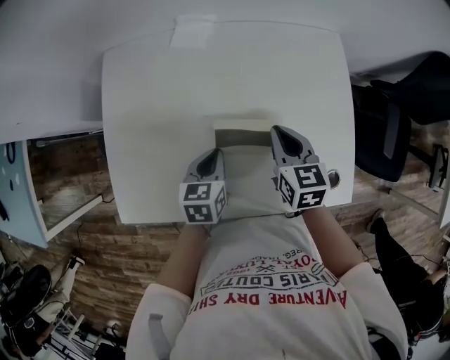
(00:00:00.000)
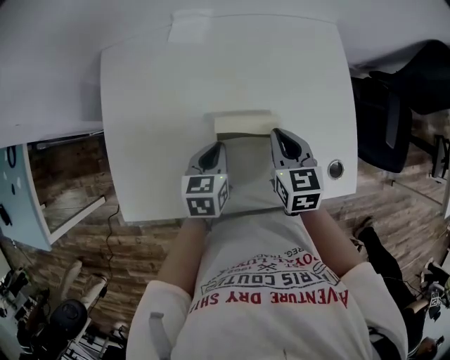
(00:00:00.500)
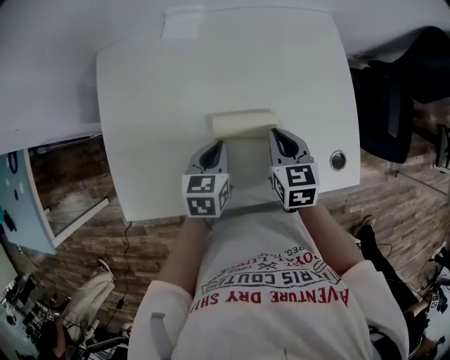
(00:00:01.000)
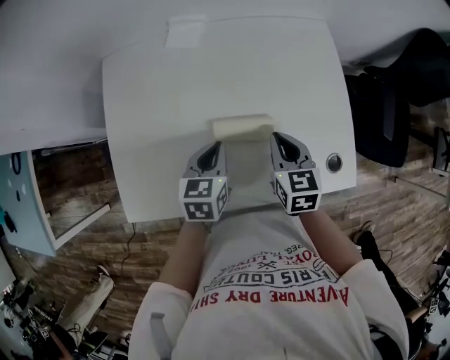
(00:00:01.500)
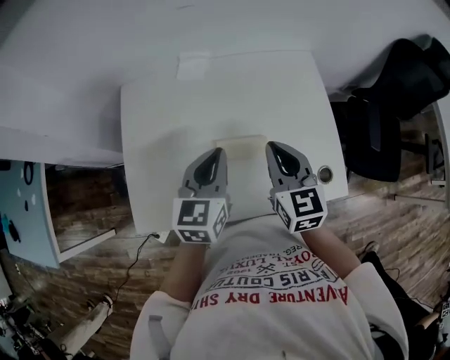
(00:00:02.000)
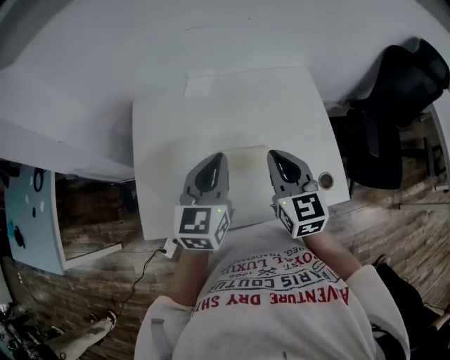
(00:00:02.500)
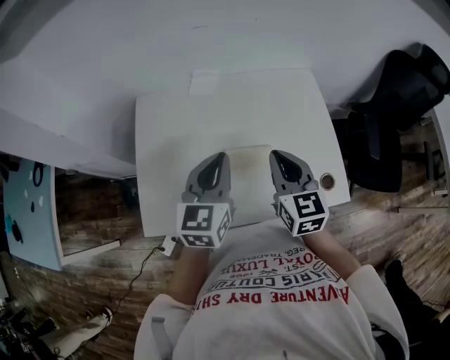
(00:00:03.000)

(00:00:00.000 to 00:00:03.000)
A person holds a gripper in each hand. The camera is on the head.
00:00:00.000 - 00:00:01.500: The right gripper moves about 5 cm.
00:00:01.500 - 00:00:03.000: The two grippers go approximately 15 cm upward. The left gripper turns by some 30 degrees.

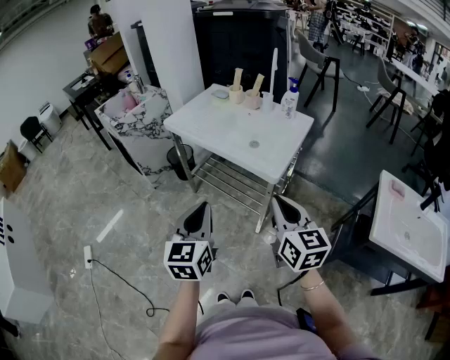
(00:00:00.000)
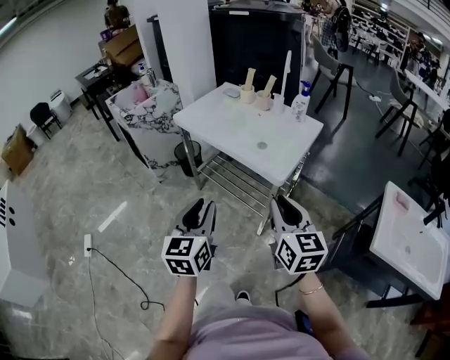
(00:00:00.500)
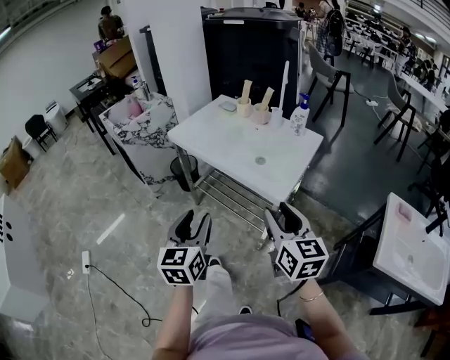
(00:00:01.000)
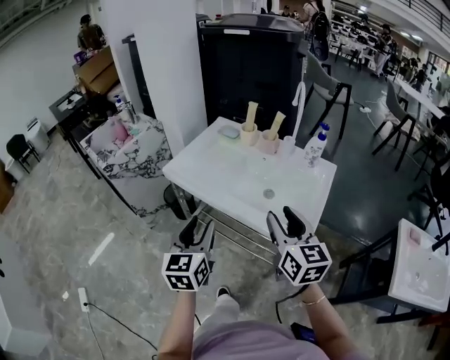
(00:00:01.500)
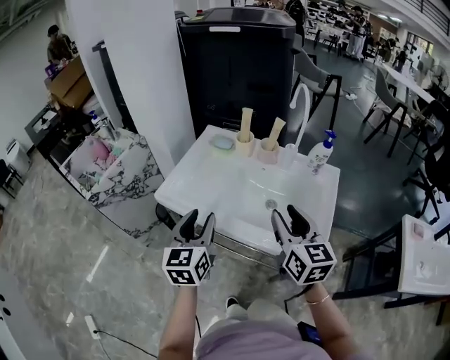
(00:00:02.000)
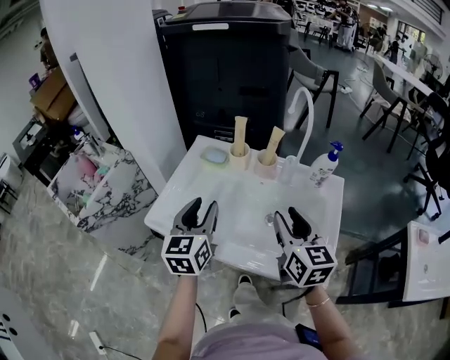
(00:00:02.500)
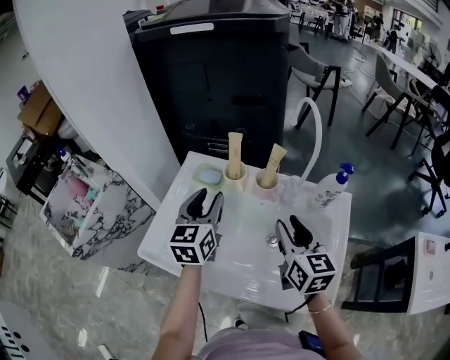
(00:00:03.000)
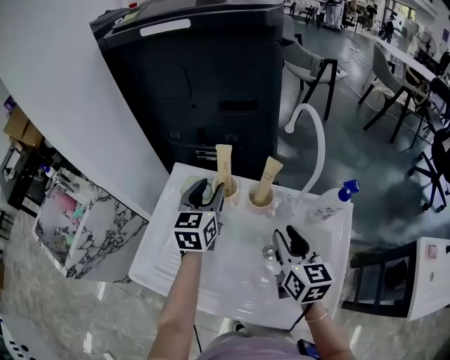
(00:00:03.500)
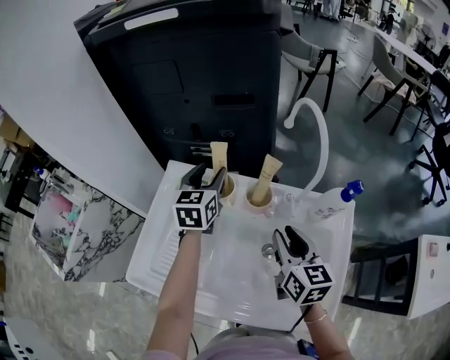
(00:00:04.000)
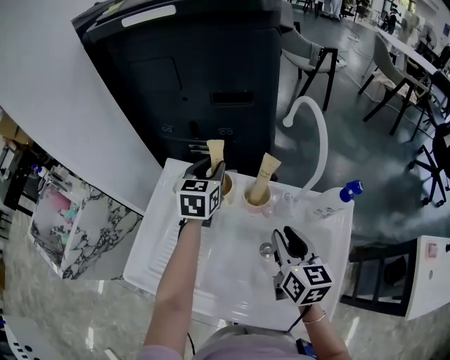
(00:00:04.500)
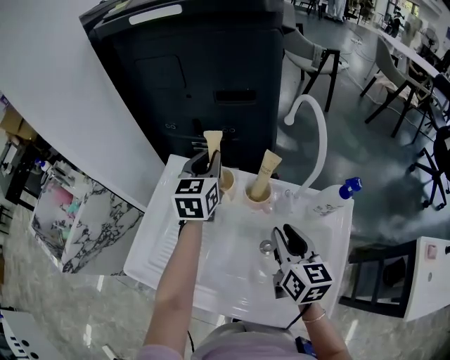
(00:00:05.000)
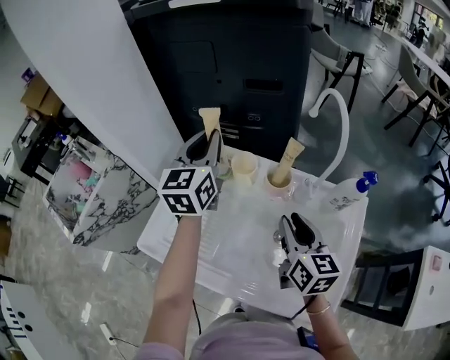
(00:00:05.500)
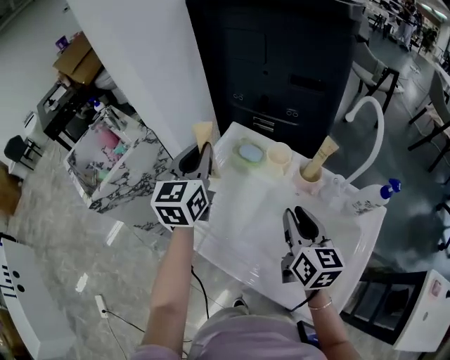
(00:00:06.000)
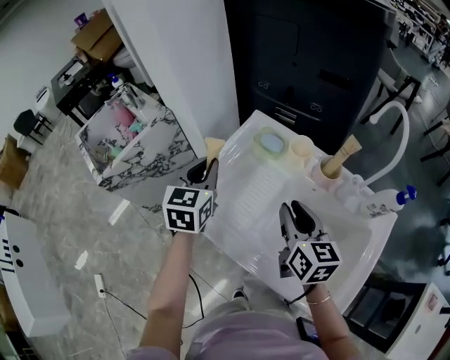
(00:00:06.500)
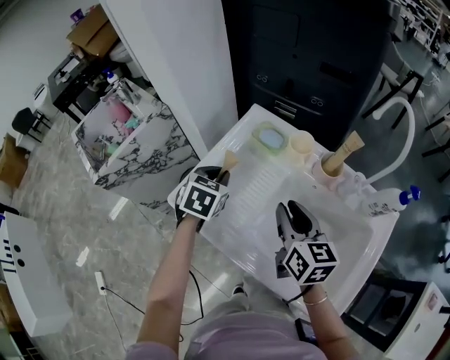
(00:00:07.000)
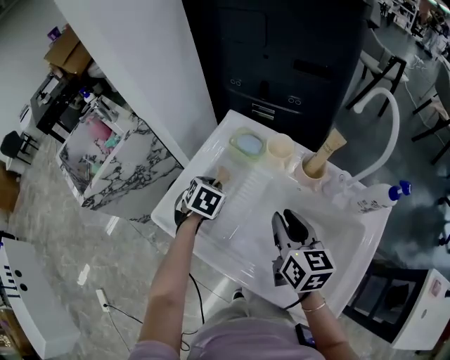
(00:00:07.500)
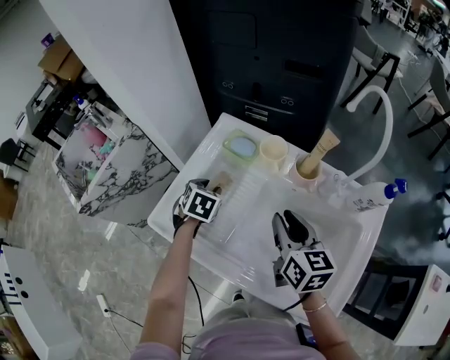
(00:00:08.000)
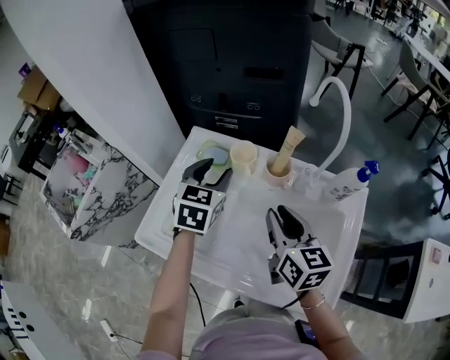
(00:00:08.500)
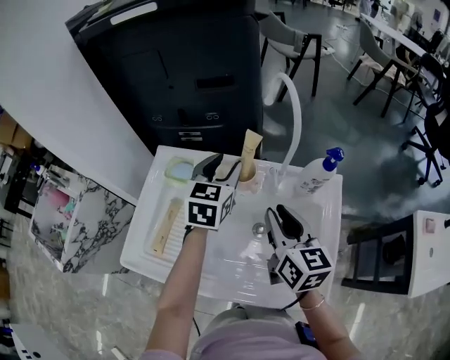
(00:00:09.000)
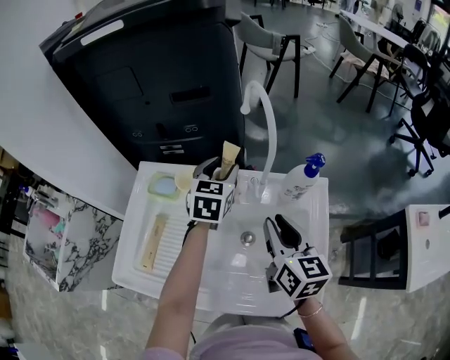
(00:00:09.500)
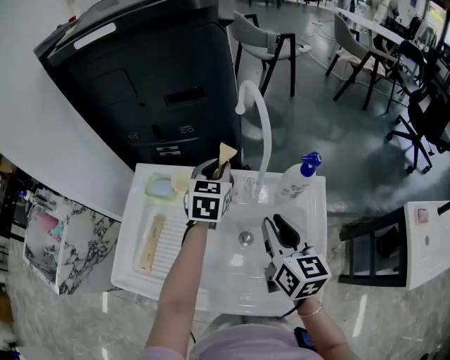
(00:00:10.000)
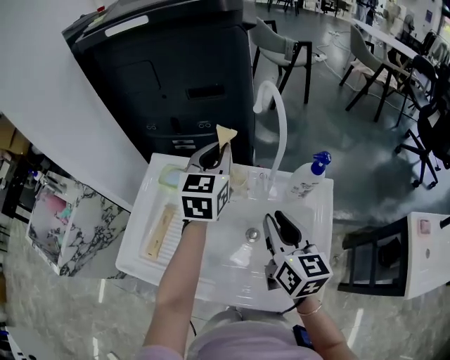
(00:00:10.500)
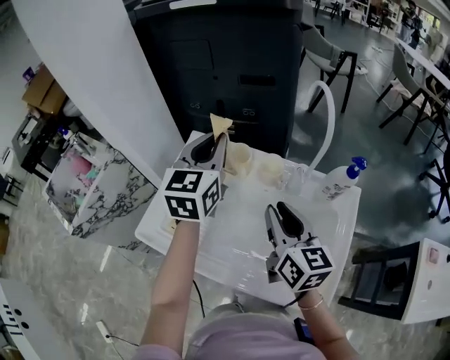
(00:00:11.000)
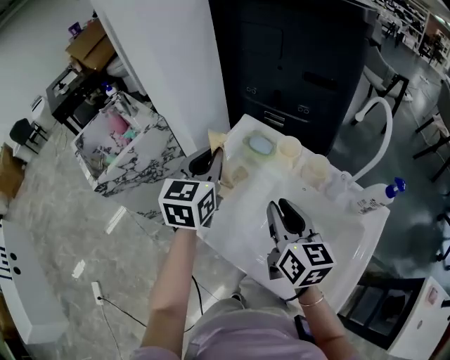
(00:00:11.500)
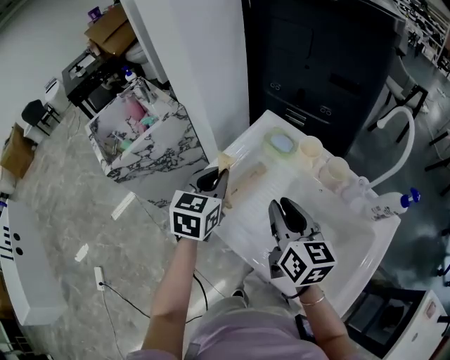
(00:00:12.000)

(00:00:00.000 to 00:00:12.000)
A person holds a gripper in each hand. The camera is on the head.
00:00:00.000 - 00:00:02.000: Both grippers travel together forward, approximately 40 cm. The right gripper opens its fingers. The left gripper opens up.
00:00:02.000 - 00:00:04.000: The right gripper shifts approximately 30 cm forward and downward; the left gripper travels forward by roughly 50 cm.
00:00:04.000 - 00:00:06.000: The right gripper shifts roughly 10 cm to the left; the left gripper goes roughly 25 cm to the left, backward and upward, changes its angle by about 20 degrees, and closes.
00:00:06.000 - 00:00:08.000: The left gripper travels downward by approximately 25 cm, tilts its fingers approximately 50 degrees downward, and opens its fingers.
00:00:08.000 - 00:00:10.000: The left gripper changes place by some 35 cm, and angles its fingers upward, by approximately 30 degrees. Meanwhile the right gripper shifts by approximately 15 cm, and changes its angle by some 20 degrees.
00:00:10.000 - 00:00:12.000: The left gripper travels upward and back again, some 15 cm each way, and rotates some 30 degrees. Meanwhile the right gripper shifts by about 25 cm, and changes its angle by roughly 30 degrees.

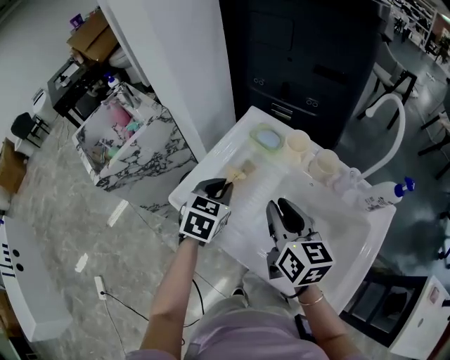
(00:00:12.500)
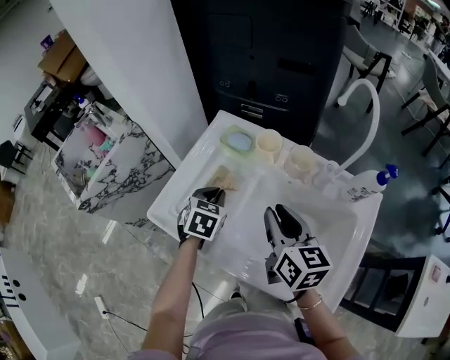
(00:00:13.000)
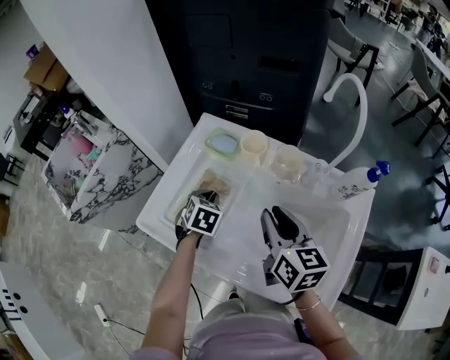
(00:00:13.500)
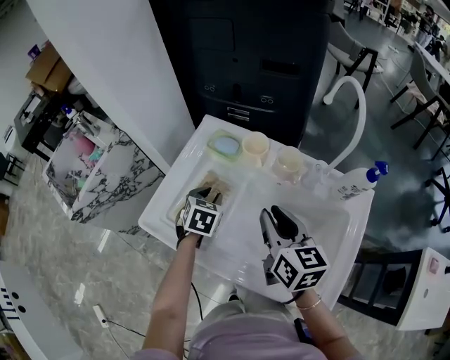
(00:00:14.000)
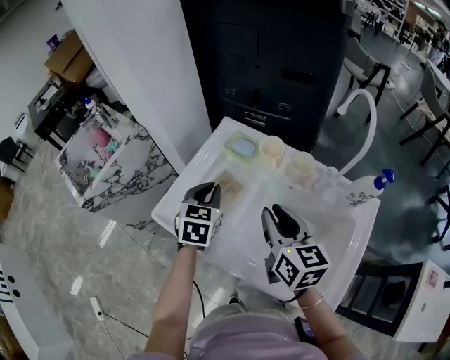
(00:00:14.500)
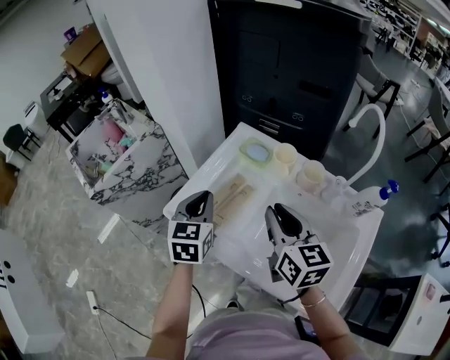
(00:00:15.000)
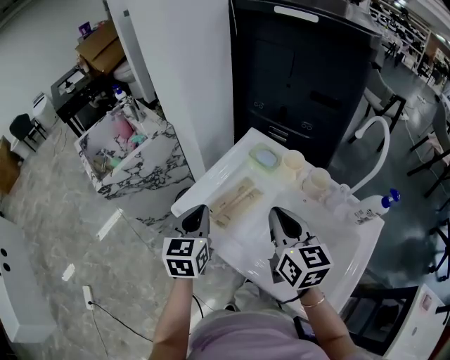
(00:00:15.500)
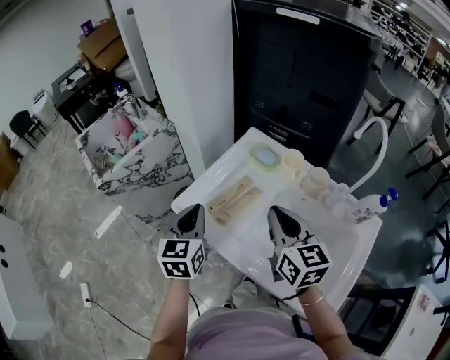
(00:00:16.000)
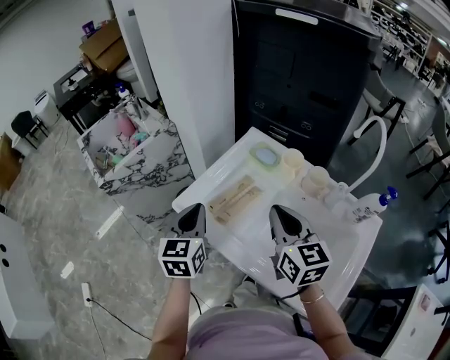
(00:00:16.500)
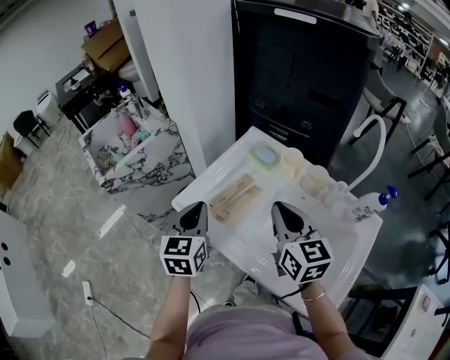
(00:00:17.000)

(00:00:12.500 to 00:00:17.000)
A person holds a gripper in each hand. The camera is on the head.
00:00:12.500 - 00:00:14.500: The left gripper goes downward and returns, about 10 cm each way, and opens, then closes once more.
00:00:14.500 - 00:00:17.000: The right gripper ends up roughly 5 cm from where it was, and closes. The left gripper travels to the left, backward and upward by about 15 cm, and swivels some 20 degrees.

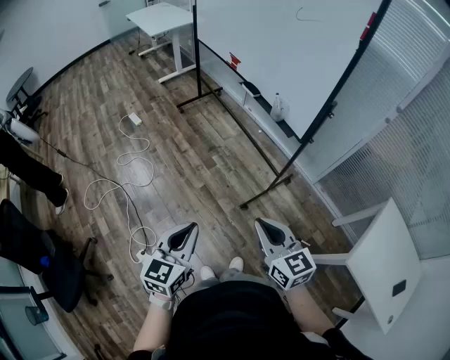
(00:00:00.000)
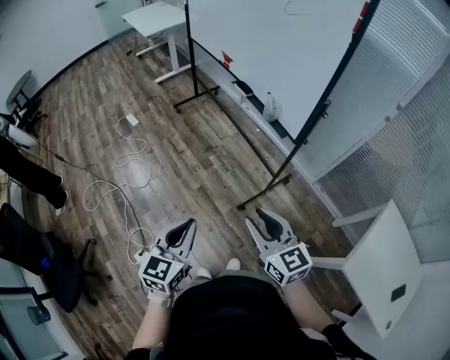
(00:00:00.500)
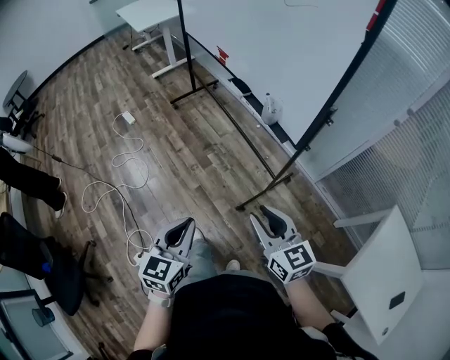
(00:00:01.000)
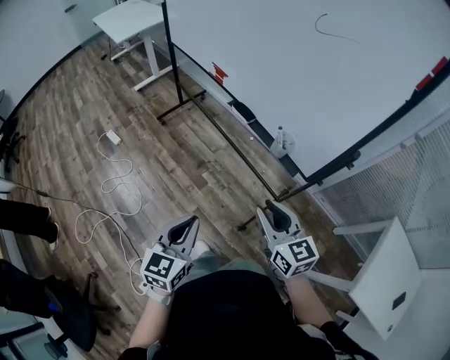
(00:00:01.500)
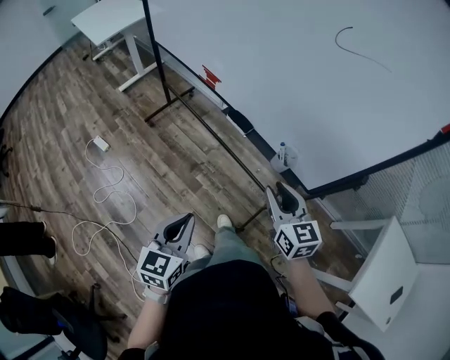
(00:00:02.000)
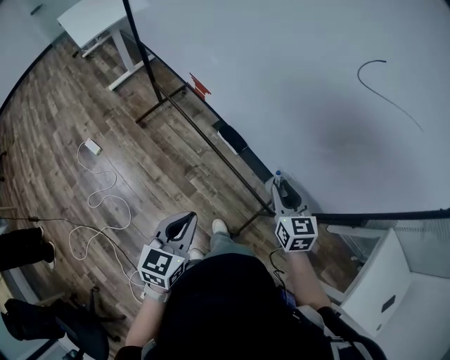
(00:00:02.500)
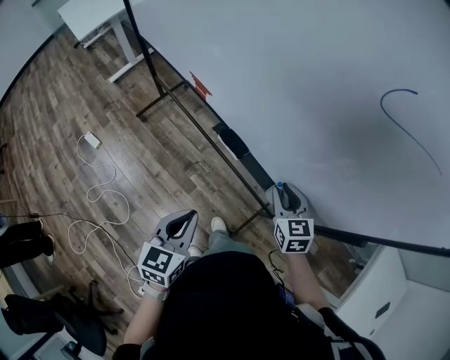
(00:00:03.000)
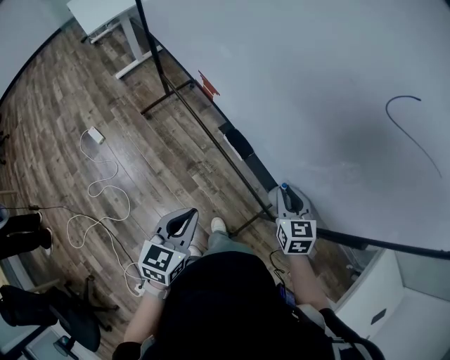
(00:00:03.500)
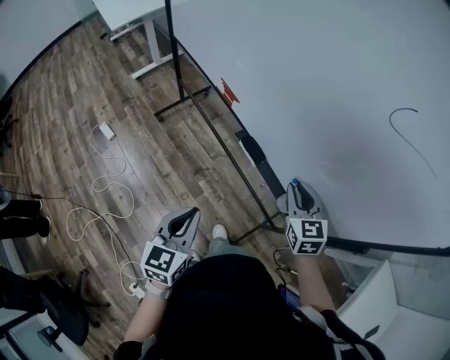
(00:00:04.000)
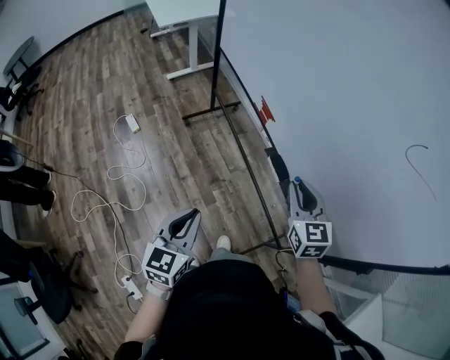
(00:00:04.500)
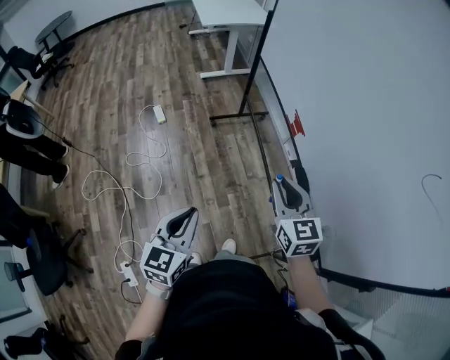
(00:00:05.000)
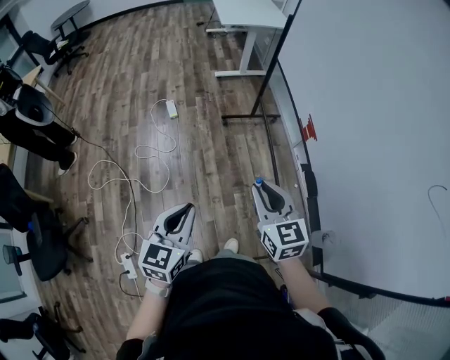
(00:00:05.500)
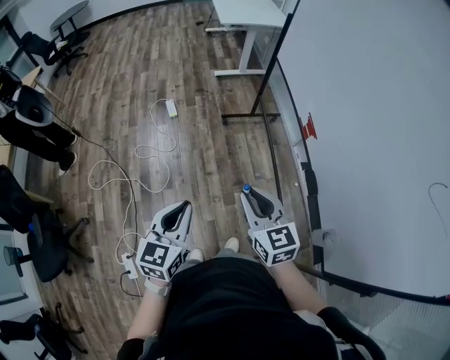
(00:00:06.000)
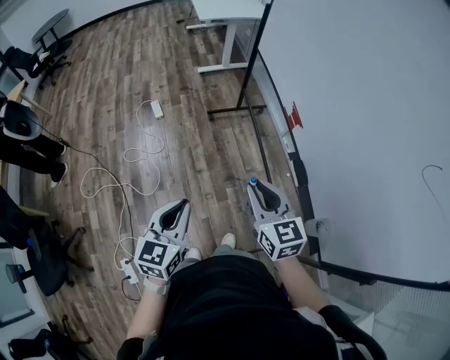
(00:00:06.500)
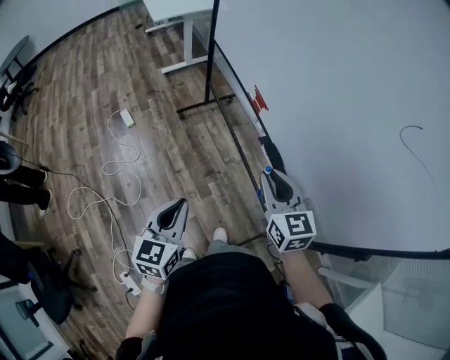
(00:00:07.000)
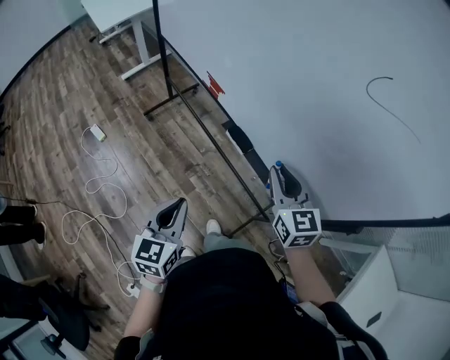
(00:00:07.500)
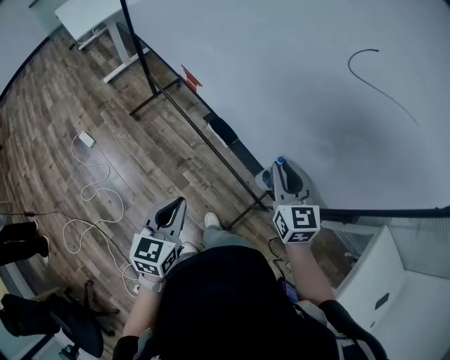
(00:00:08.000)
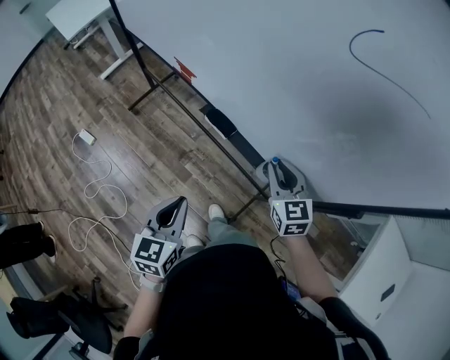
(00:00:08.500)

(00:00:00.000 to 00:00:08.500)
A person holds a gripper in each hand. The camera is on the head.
00:00:00.000 - 00:00:02.000: The two grippers travel together, forward, some 40 cm. The right gripper changes its angle by roughly 20 degrees, and opens up.
00:00:02.000 - 00:00:04.000: The grippers both shift forward by about 15 cm.
00:00:04.000 - 00:00:06.500: The left gripper shifts by some 20 cm, and swivels some 30 degrees; the right gripper changes place by about 30 cm, and rotates some 40 degrees.
00:00:06.500 - 00:00:08.500: The left gripper moves about 25 cm, and changes its angle by approximately 30 degrees; the right gripper moves approximately 35 cm, and rotates roughly 40 degrees.
